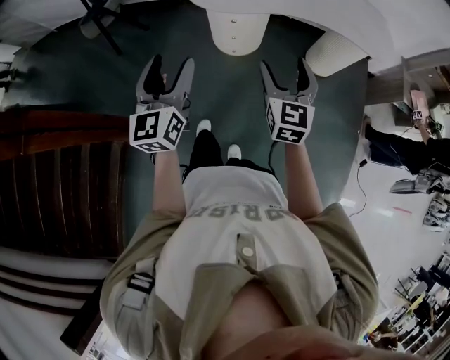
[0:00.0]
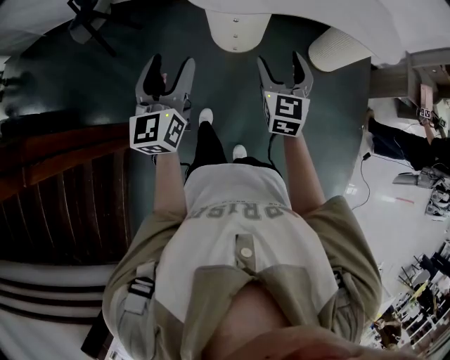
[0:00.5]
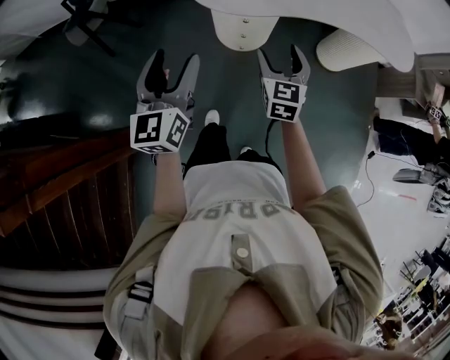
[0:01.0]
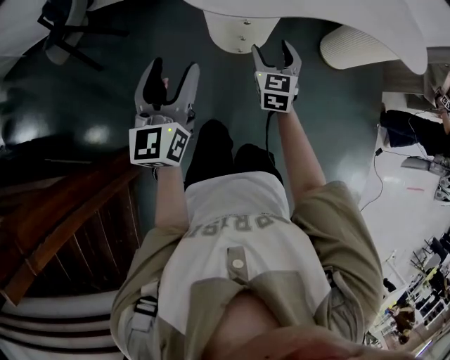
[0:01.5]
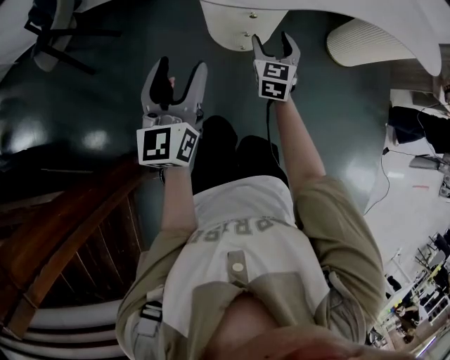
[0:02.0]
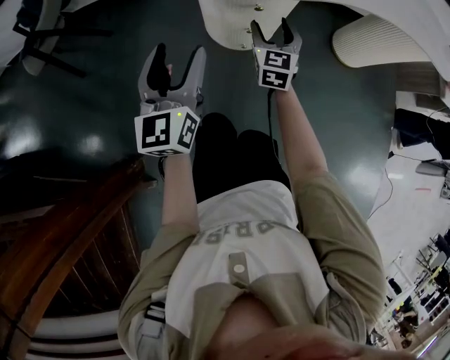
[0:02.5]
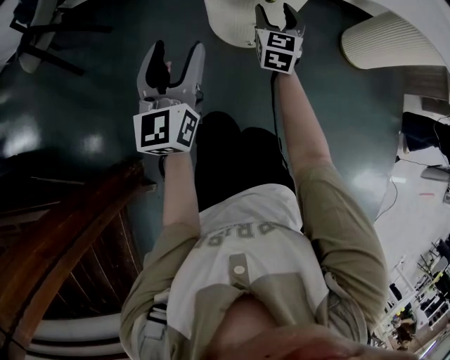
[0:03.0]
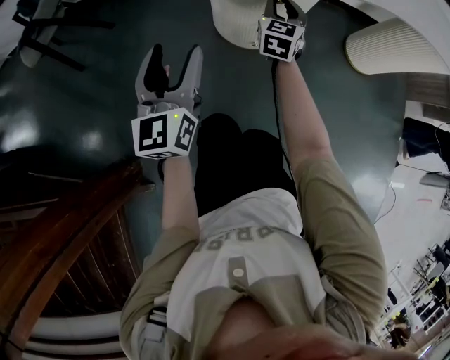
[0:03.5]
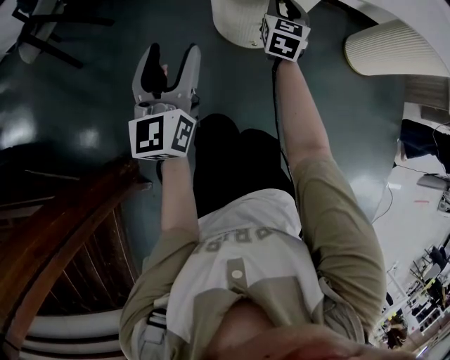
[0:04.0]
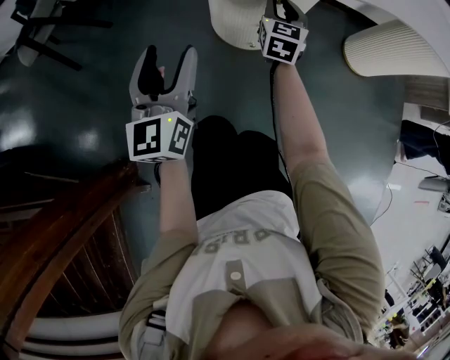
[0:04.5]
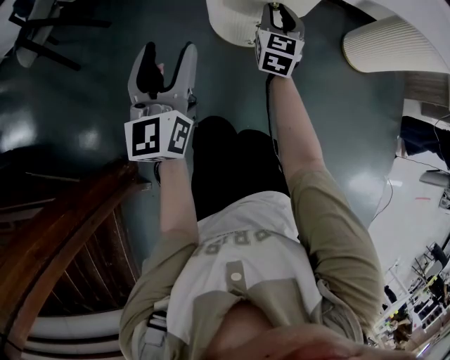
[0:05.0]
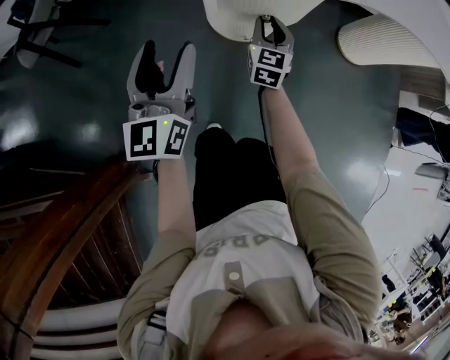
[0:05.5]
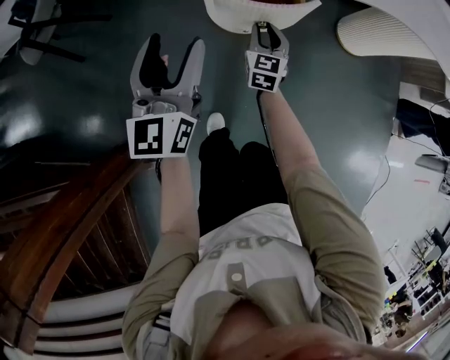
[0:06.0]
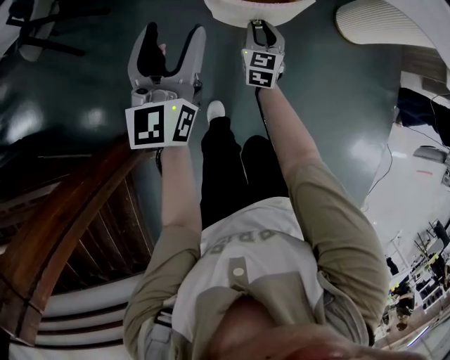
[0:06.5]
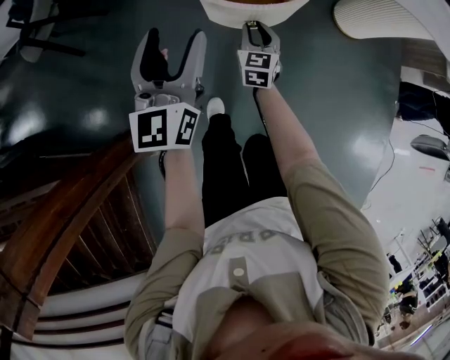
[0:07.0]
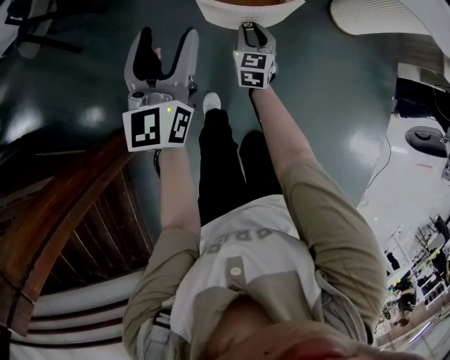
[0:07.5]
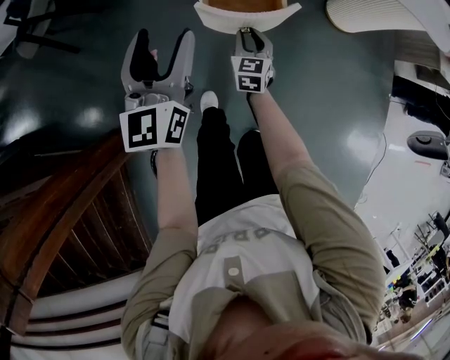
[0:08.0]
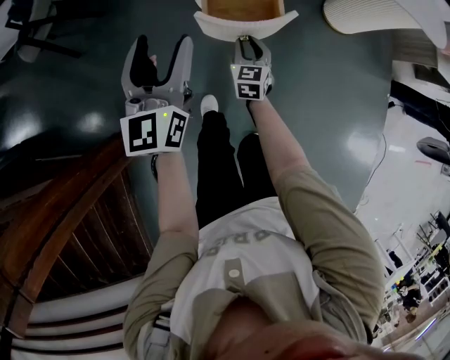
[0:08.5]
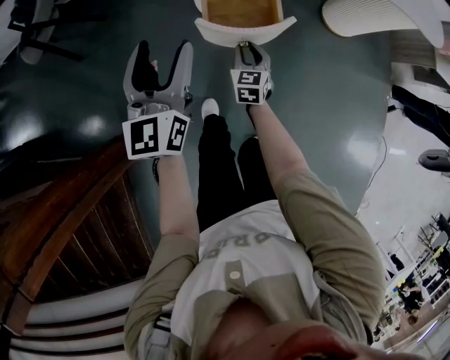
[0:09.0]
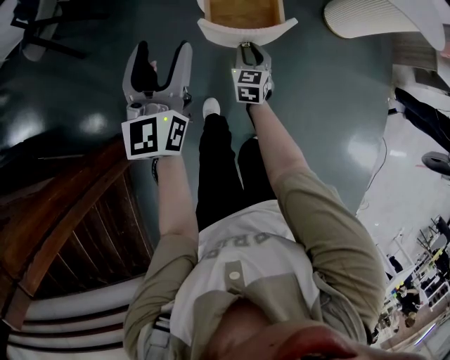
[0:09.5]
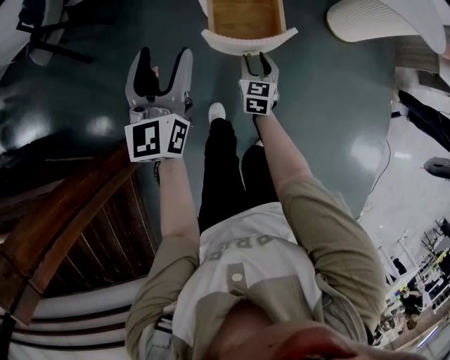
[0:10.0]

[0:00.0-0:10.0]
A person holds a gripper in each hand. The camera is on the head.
0:00.0 to 0:02.0: The two grippers go roughly 40 cm downward and forward.
0:02.0 to 0:04.0: The right gripper moves forward and downward, approximately 15 cm, and closes. The left gripper heads downward, covering roughly 15 cm.
0:04.0 to 0:06.0: The left gripper goes roughly 10 cm upward. The right gripper shifts about 10 cm backward.
0:06.0 to 0:08.0: The right gripper heads backward, covering roughly 10 cm. Meanwhile the left gripper goes some 5 cm backward.
0:08.0 to 0:10.0: The grippers stay close to where they were, moving slightly.

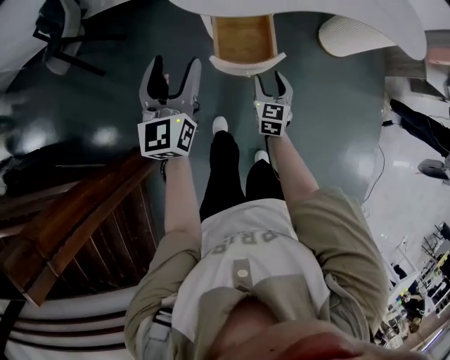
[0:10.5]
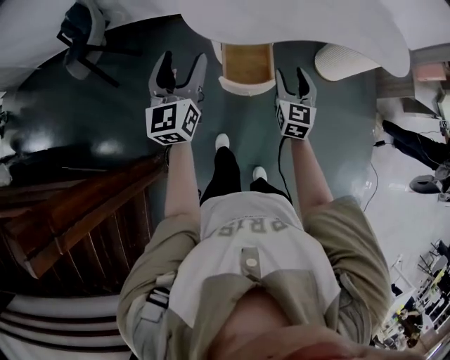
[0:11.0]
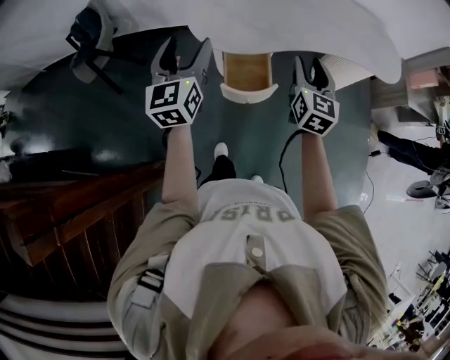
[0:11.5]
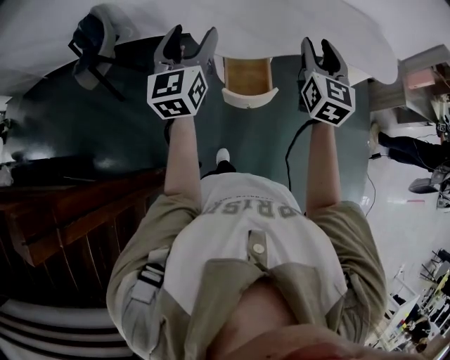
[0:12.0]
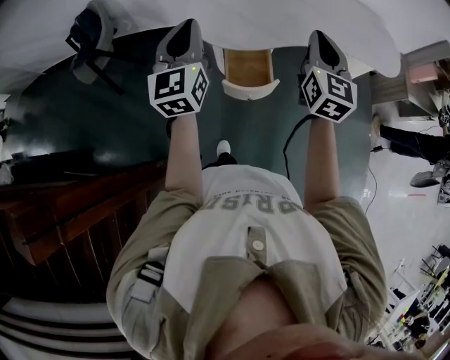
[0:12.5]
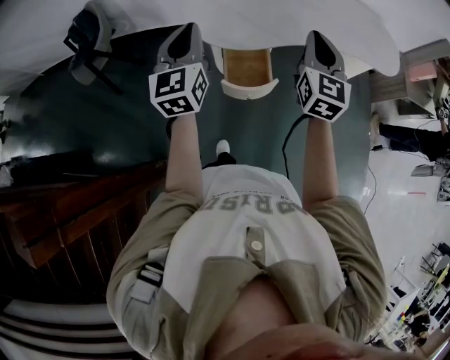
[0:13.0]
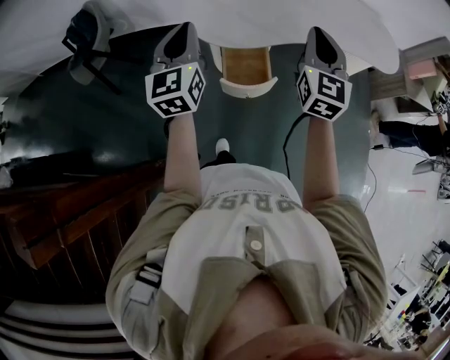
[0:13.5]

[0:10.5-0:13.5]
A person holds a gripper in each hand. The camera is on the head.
0:10.5 to 0:12.0: The left gripper travels upward by roughly 20 cm; the right gripper moves upward, approximately 40 cm, and rotates approximately 20 degrees.
0:12.0 to 0:13.5: The left gripper closes its fingers. Meanwhile the right gripper closes up.

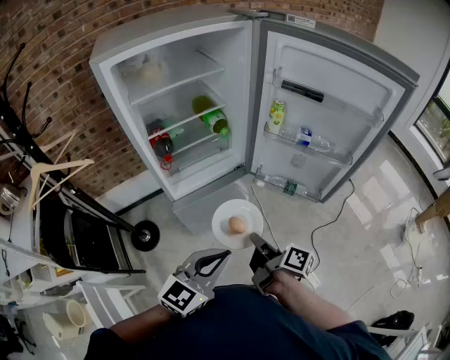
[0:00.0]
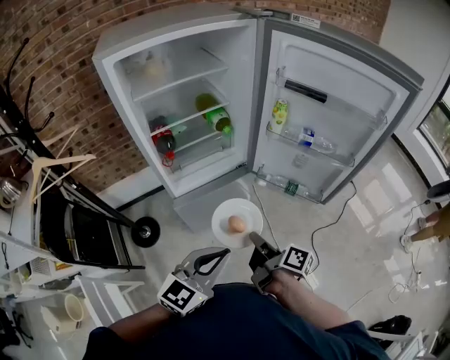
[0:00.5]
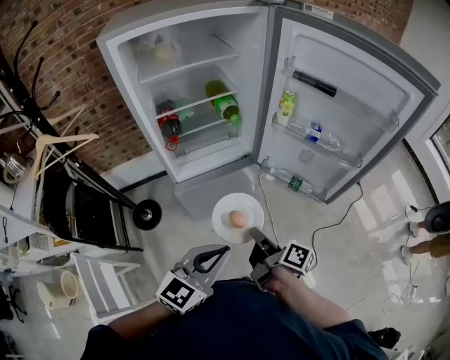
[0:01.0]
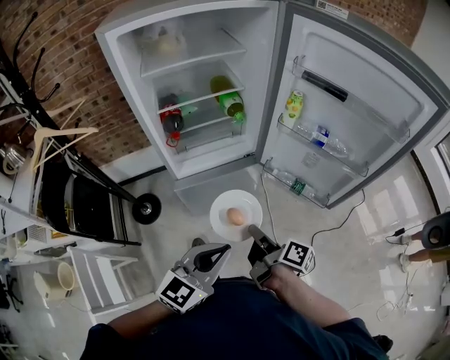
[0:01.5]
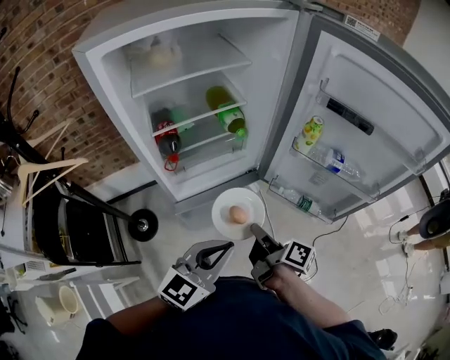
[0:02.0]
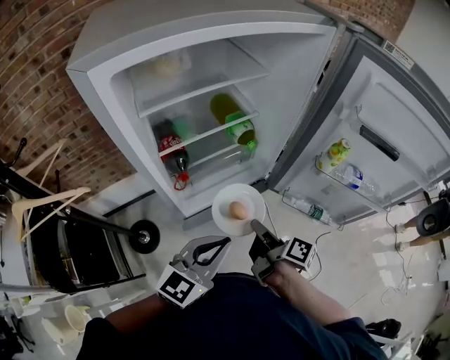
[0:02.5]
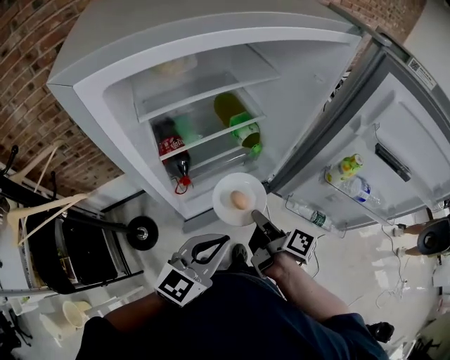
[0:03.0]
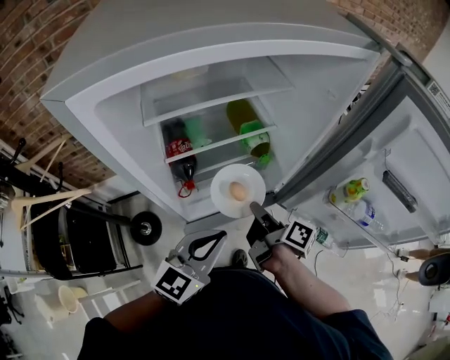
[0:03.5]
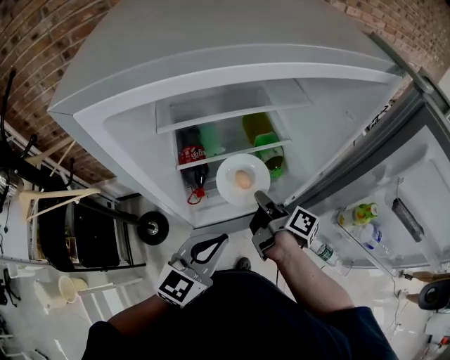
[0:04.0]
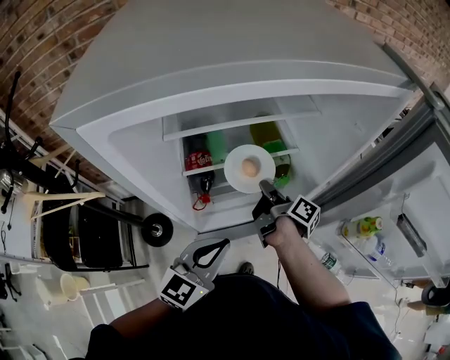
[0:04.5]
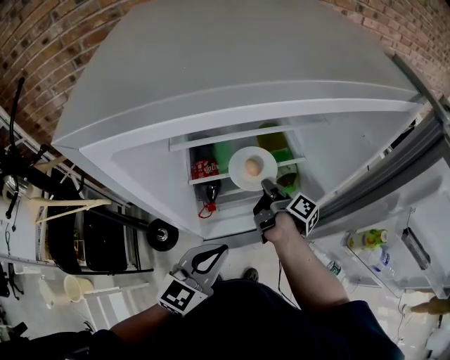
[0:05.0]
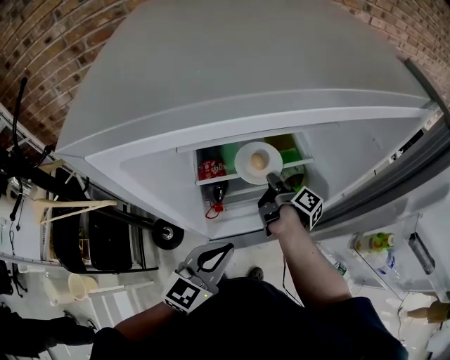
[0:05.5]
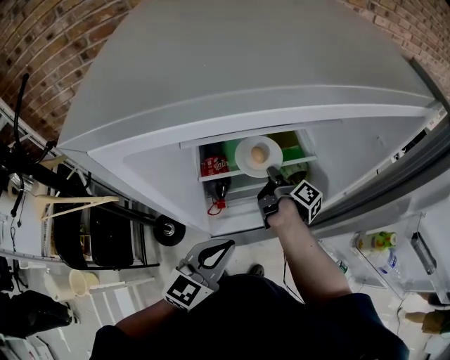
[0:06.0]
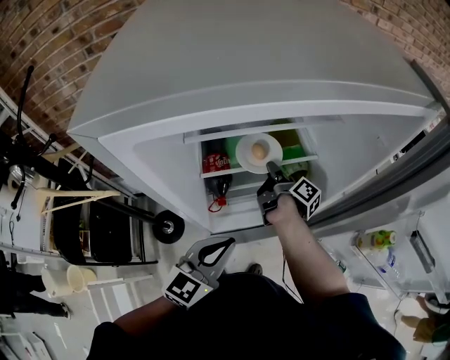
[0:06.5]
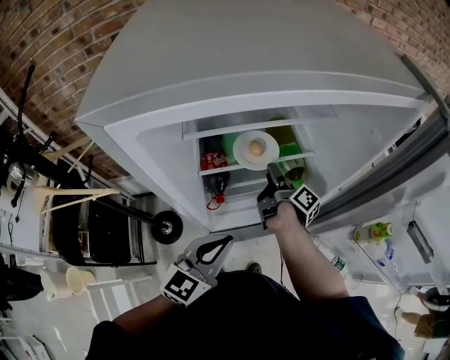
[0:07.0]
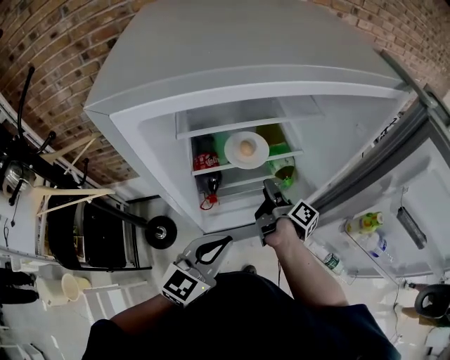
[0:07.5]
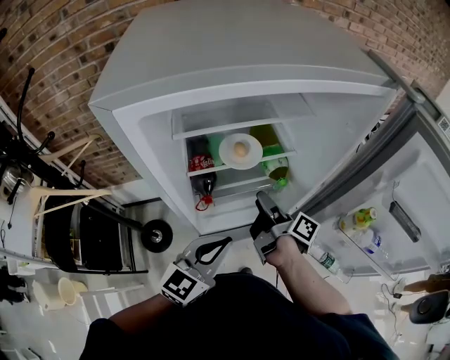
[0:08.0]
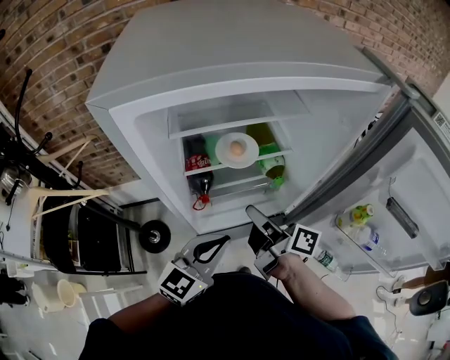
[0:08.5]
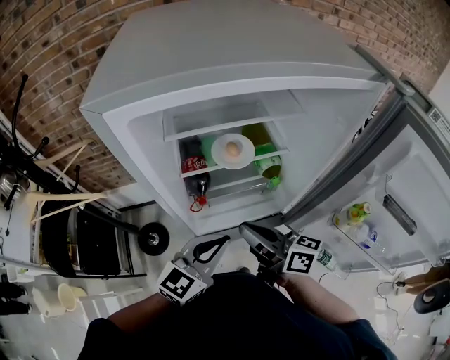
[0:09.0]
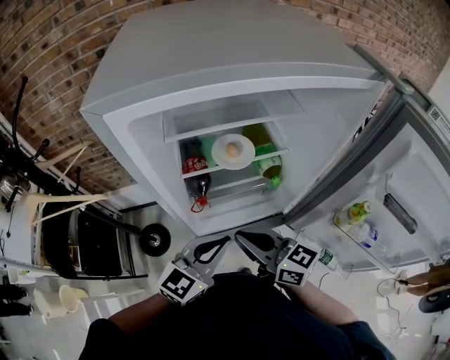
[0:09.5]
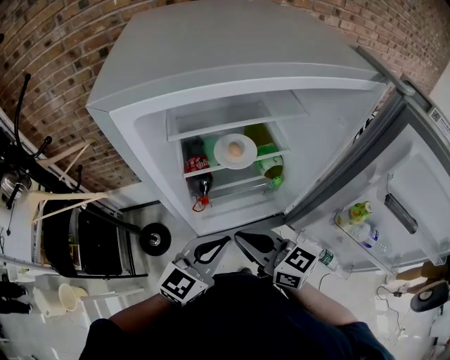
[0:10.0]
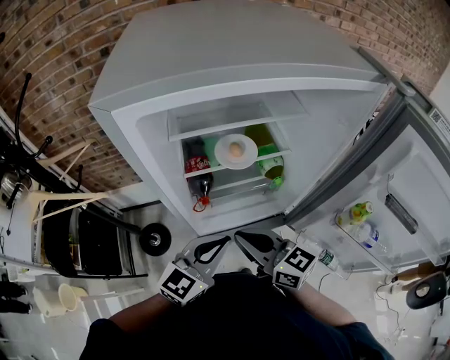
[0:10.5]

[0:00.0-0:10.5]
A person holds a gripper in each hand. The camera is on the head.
0:00.0 to 0:02.0: The left gripper changes place by some 15 cm.
0:02.0 to 0:04.0: The left gripper moves approximately 25 cm.

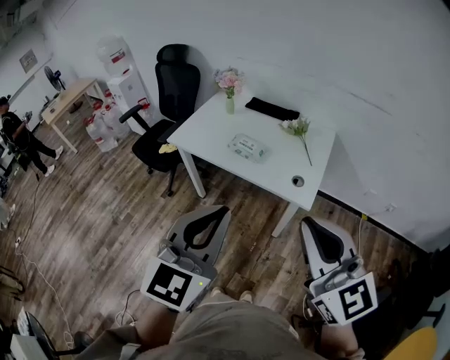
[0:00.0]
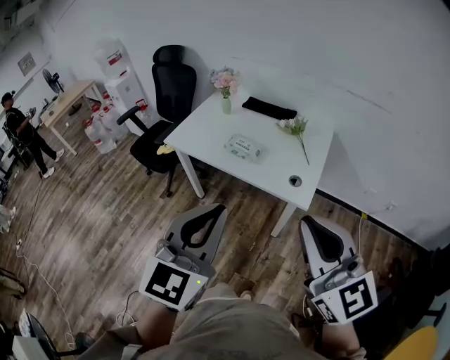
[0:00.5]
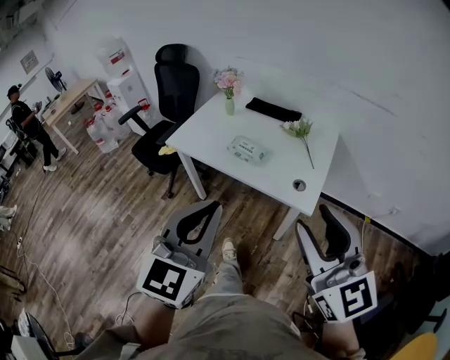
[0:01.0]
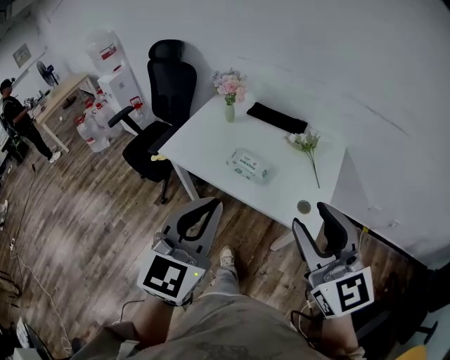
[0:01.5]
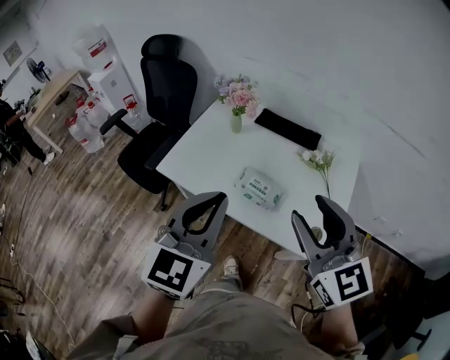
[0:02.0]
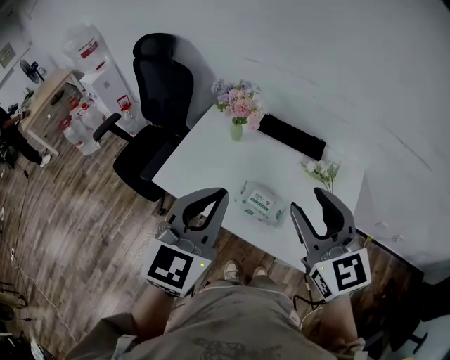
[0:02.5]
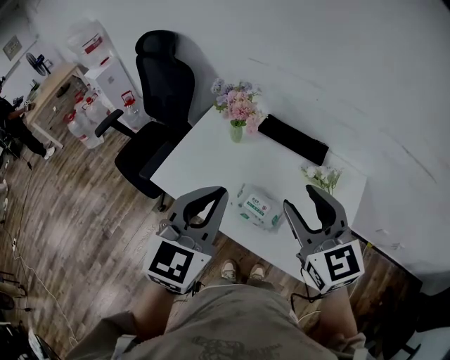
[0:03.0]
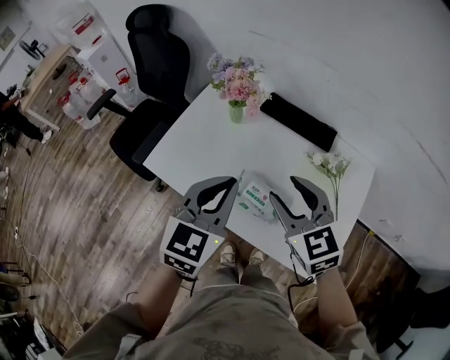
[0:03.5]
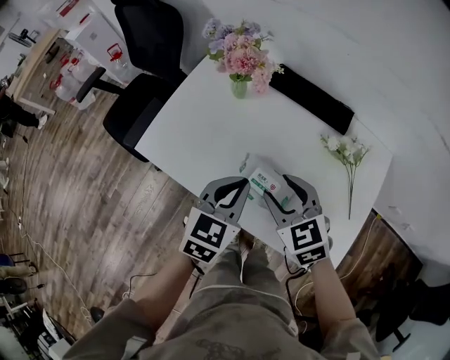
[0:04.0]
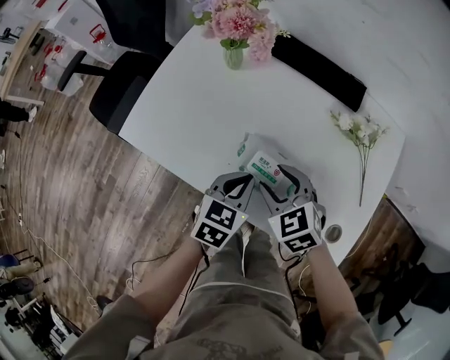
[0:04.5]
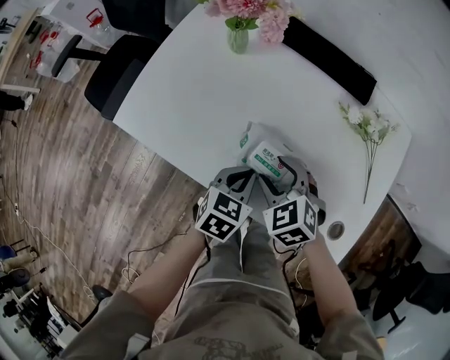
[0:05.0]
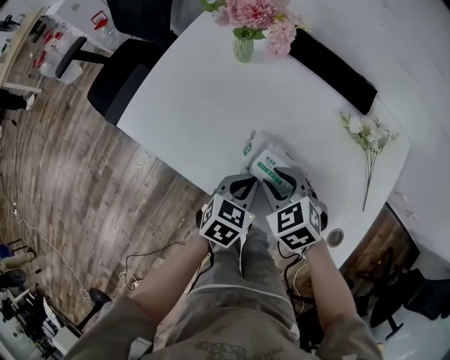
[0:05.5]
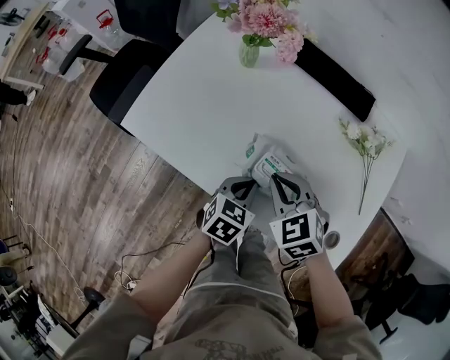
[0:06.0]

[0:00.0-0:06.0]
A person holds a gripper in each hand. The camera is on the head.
0:00.0 to 0:02.0: The two grippers go roughly 35 cm forward. The right gripper opens.
0:02.0 to 0:04.0: Both grippers move downward and forward, roughly 30 cm. The left gripper swivels some 30 degrees. The right gripper tips its fingers downward by roughly 30 degrees.
0:04.0 to 0:06.0: The left gripper is displaced downward by about 20 cm. Meanwhile the right gripper heads downward, covering roughly 10 cm, and closes its fingers.
